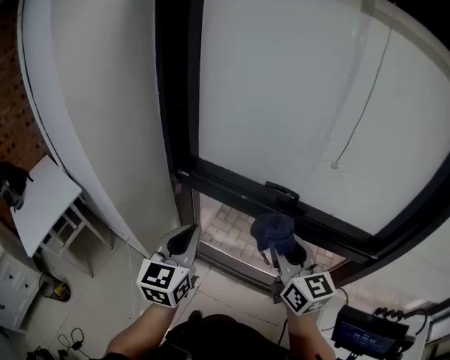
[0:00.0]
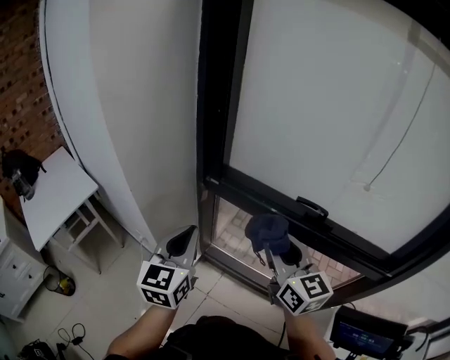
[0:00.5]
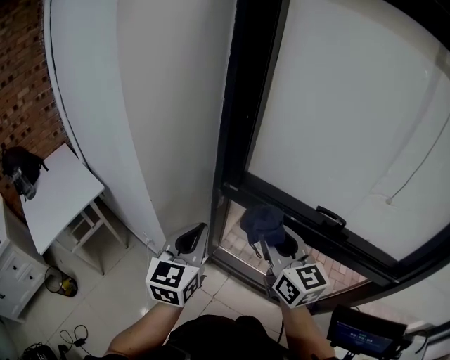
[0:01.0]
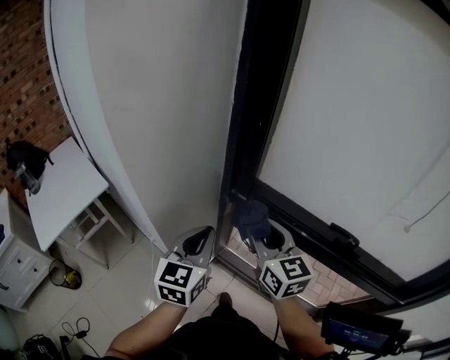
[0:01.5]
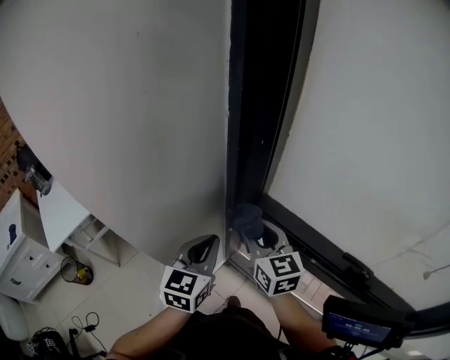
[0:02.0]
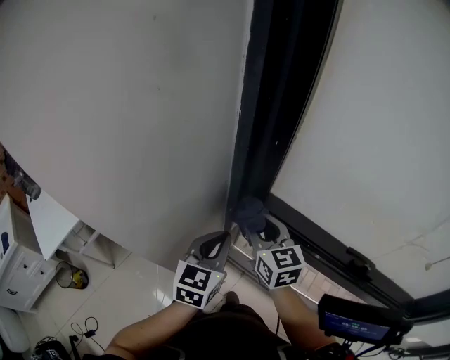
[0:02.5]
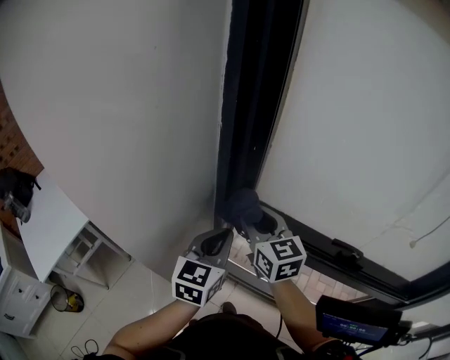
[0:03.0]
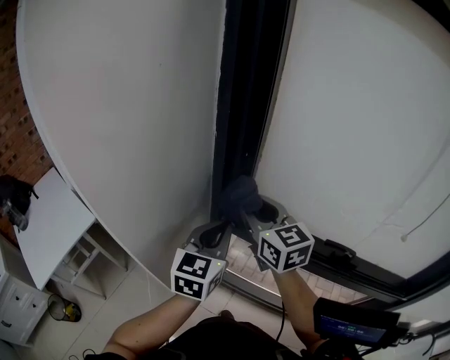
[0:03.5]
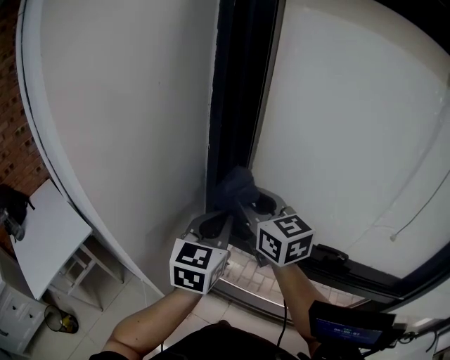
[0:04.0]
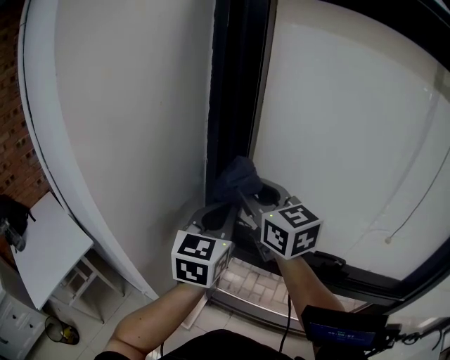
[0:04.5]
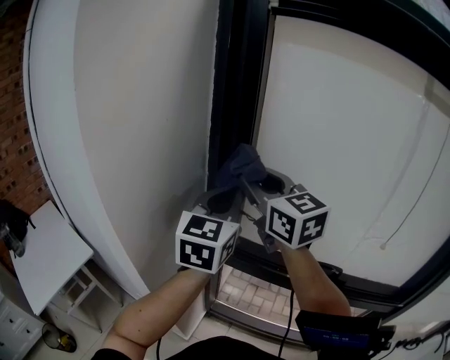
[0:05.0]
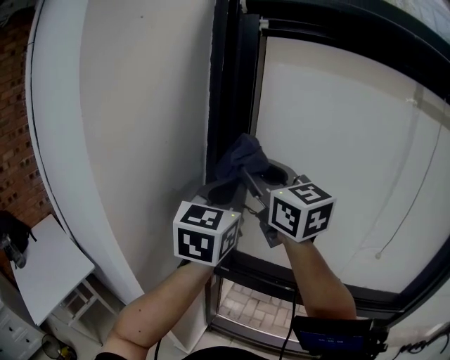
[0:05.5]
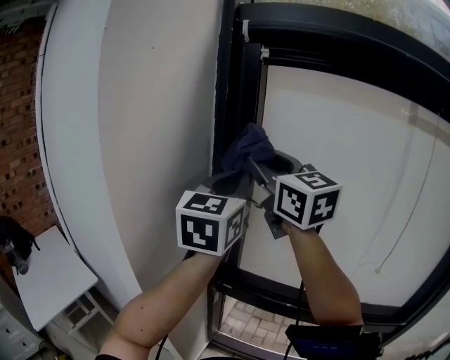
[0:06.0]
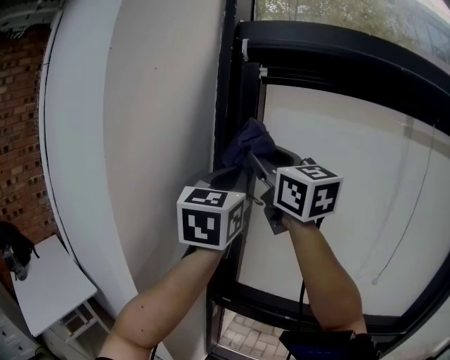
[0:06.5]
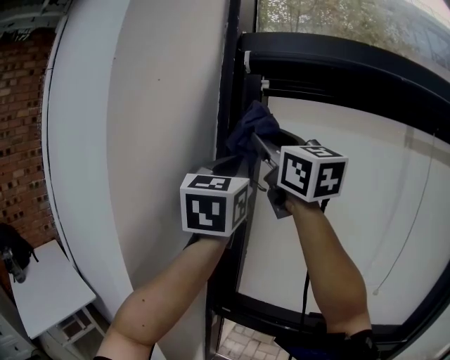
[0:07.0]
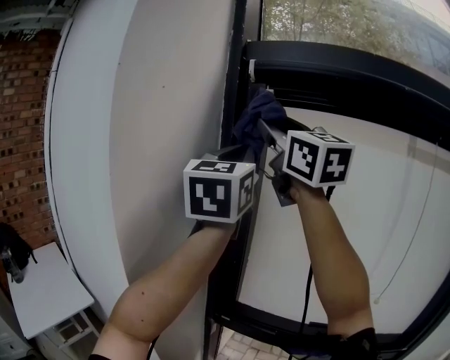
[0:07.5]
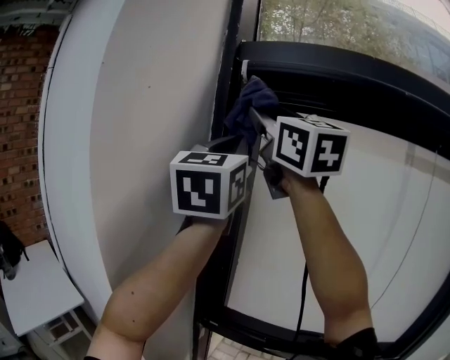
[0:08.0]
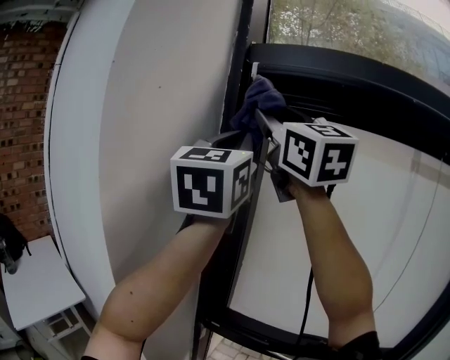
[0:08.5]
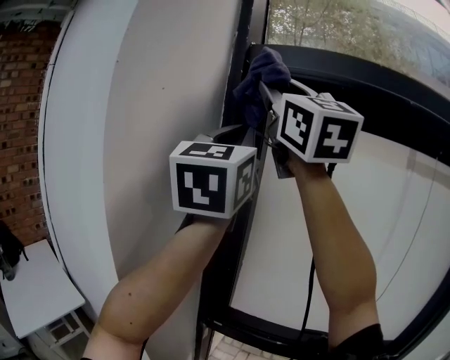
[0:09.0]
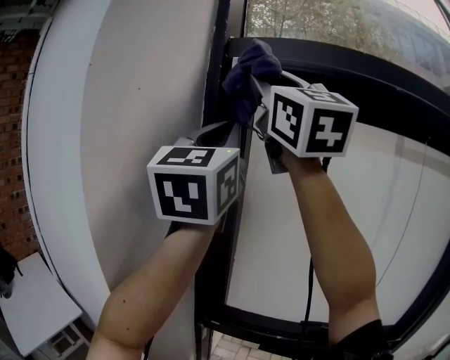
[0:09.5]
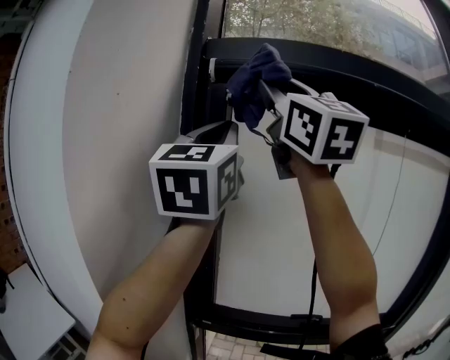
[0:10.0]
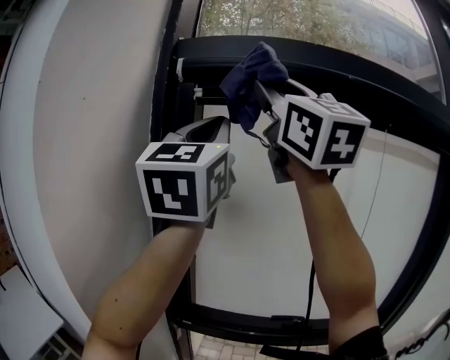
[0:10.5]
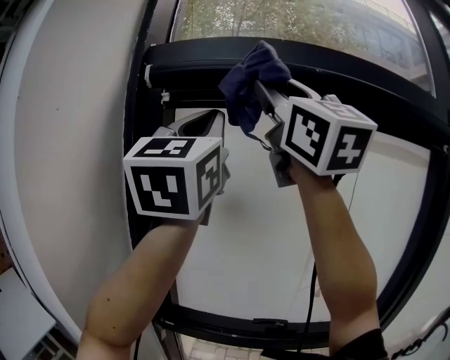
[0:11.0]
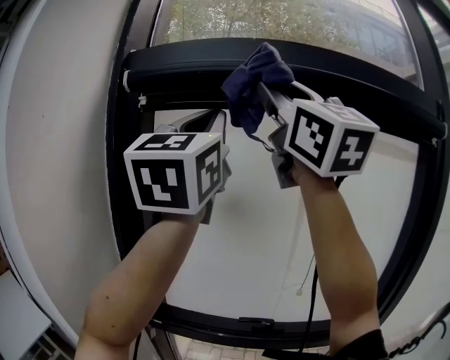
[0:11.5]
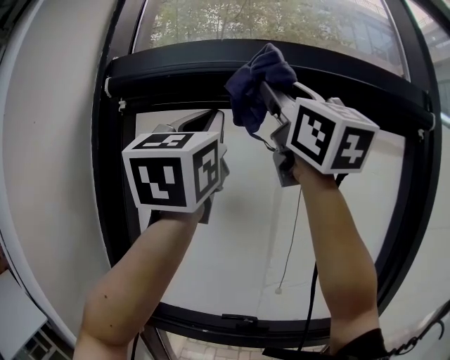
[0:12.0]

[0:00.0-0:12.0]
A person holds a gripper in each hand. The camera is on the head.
0:00.0 to 0:02.0: The right gripper is displaced forward and to the left by roughly 35 cm, and turns by about 20 degrees; the left gripper goes approximately 25 cm forward, to the left and downward.
0:02.0 to 0:04.0: The grippers both shift upward by approximately 15 cm.
0:04.0 to 0:06.0: Both grippers move upward, about 25 cm. The right gripper turns by roughly 20 degrees.
0:06.0 to 0:08.0: Both grippers travel together upward, about 20 cm.
0:08.0 to 0:10.0: The left gripper ends up about 5 cm from where it was; the right gripper shifts roughly 10 cm backward, to the right and upward.
0:10.0 to 0:12.0: Both grippers travel together to the right, some 25 cm.

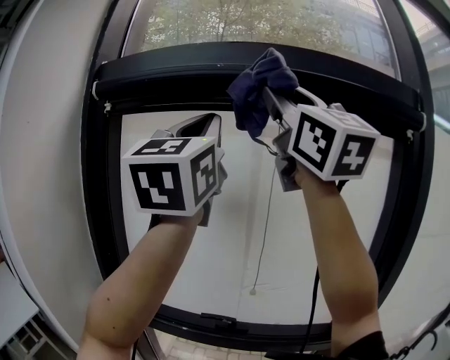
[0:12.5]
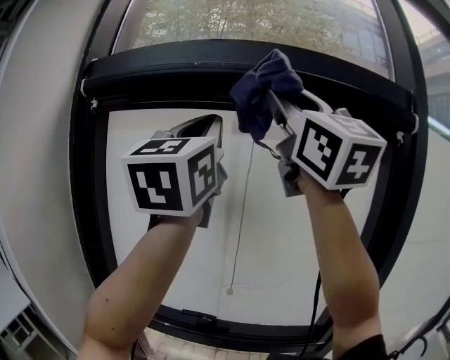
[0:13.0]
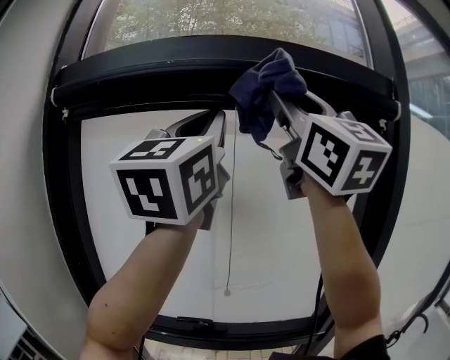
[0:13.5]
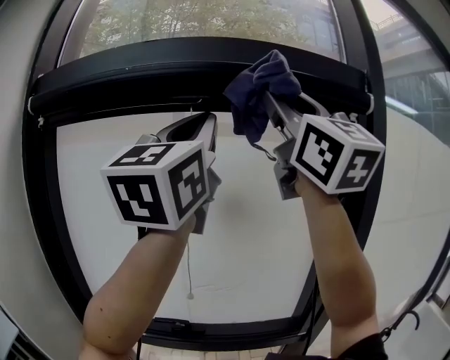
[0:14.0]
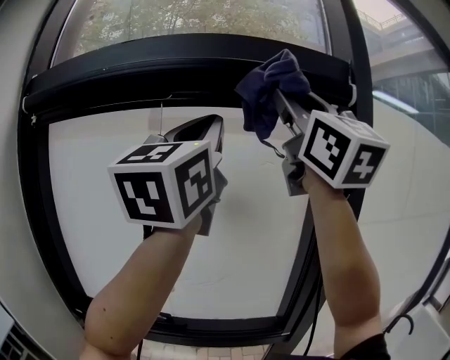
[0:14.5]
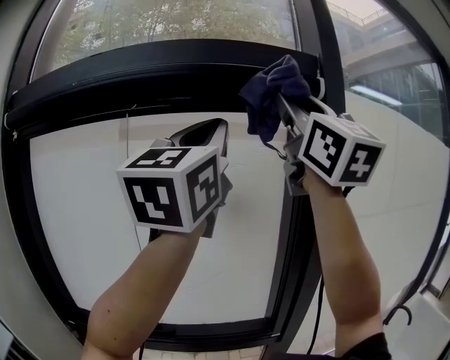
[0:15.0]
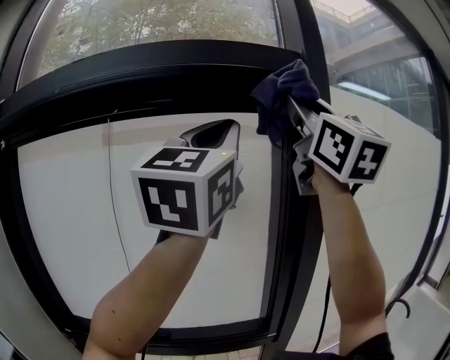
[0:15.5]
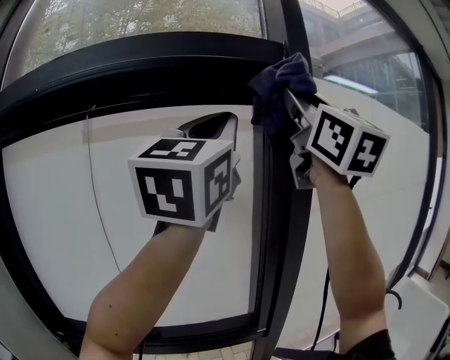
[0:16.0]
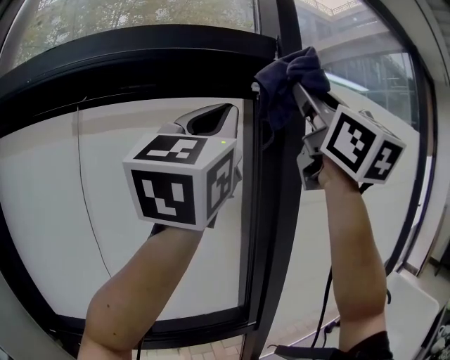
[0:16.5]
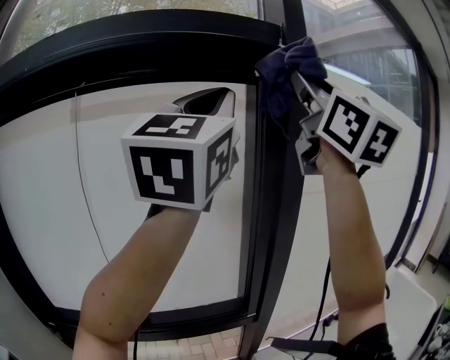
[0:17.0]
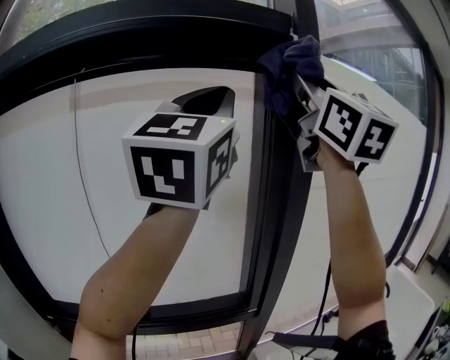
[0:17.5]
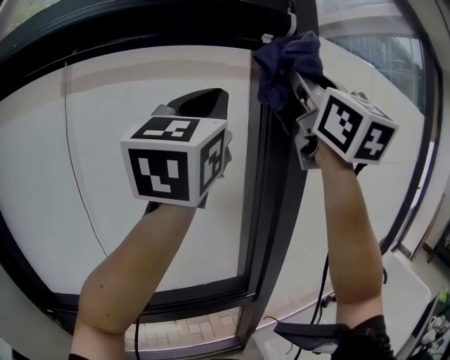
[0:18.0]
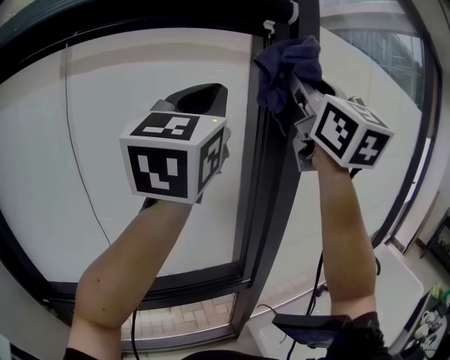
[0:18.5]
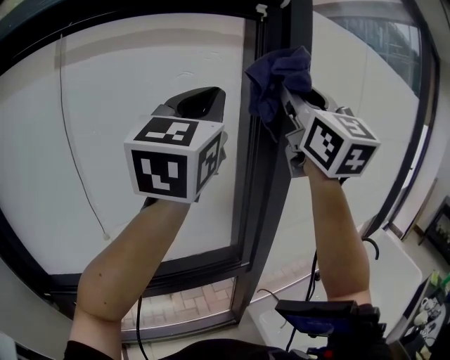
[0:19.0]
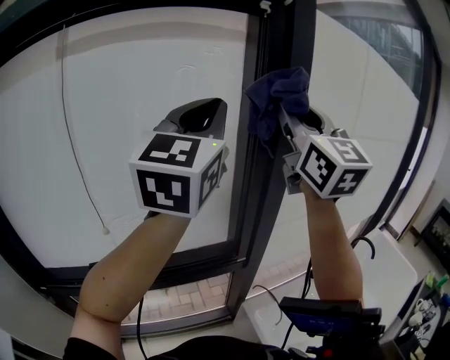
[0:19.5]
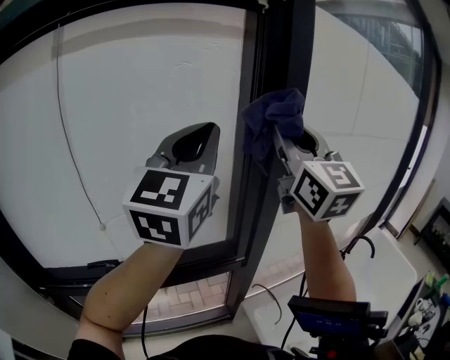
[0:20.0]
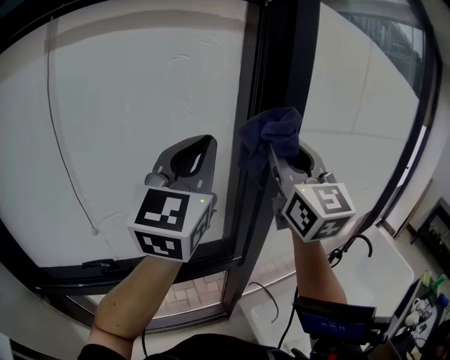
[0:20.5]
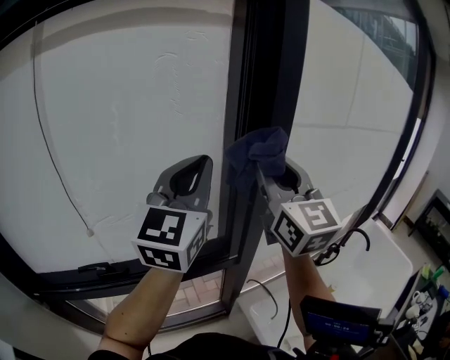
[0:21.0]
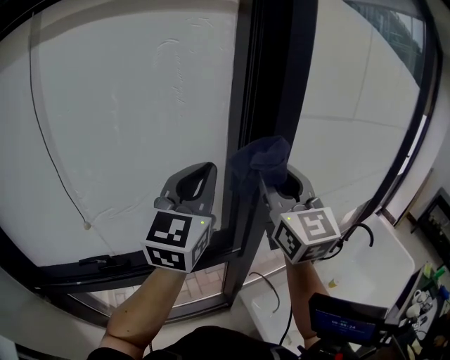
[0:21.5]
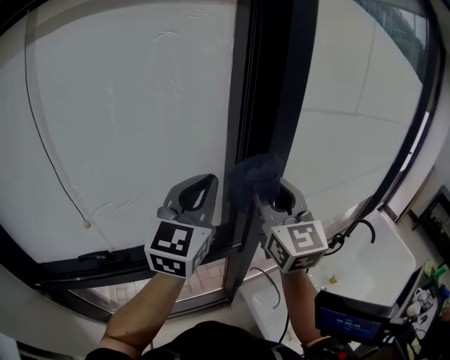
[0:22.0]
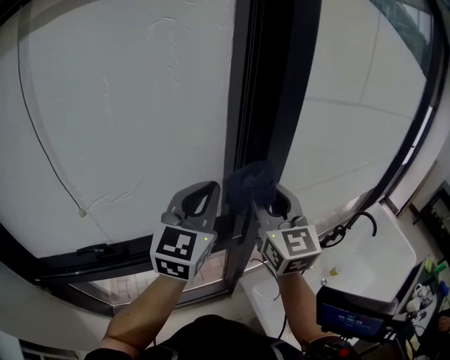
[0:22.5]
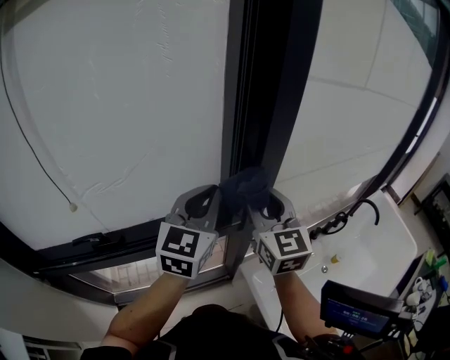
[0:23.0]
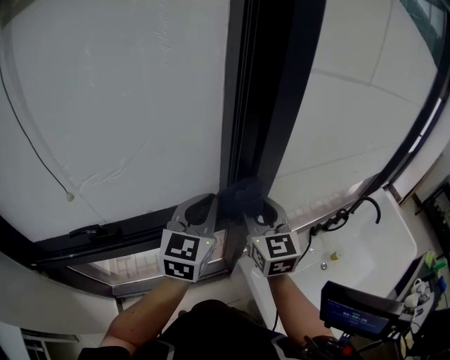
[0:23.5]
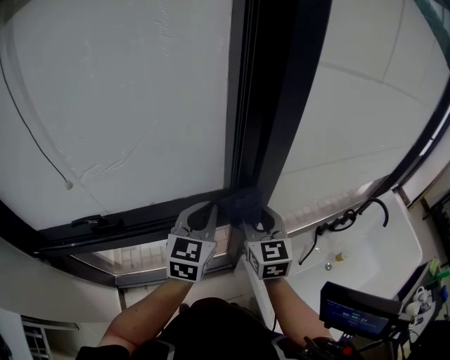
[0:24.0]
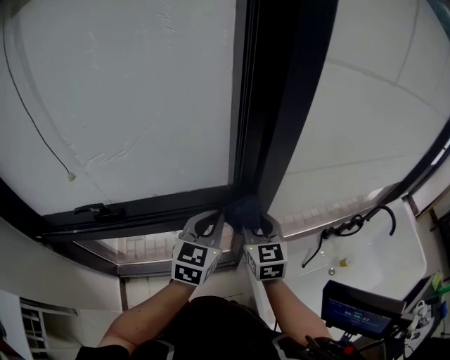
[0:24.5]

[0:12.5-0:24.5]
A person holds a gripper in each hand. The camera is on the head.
0:12.5 to 0:14.5: Both grippers travel together to the right, about 15 cm.
0:14.5 to 0:16.5: Both grippers move to the right, some 25 cm.
0:16.5 to 0:18.5: The right gripper travels downward and forward by some 10 cm, while the left gripper shifts roughly 10 cm downward.
0:18.5 to 0:20.5: The grippers both shift downward by about 15 cm.
0:20.5 to 0:22.5: Both grippers travel together downward, roughly 20 cm.
0:22.5 to 0:24.5: Both grippers move downward, some 25 cm. The right gripper turns by some 20 degrees. Meanwhile the left gripper turns by some 20 degrees.

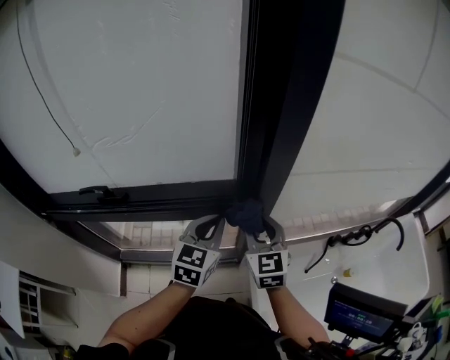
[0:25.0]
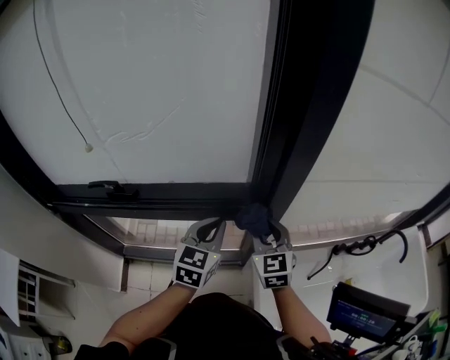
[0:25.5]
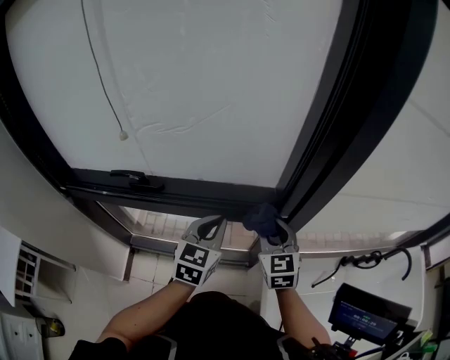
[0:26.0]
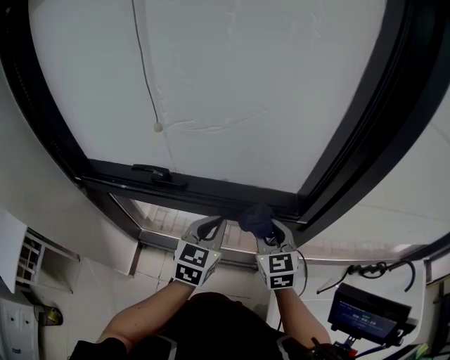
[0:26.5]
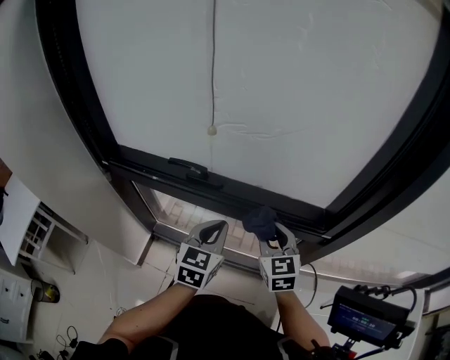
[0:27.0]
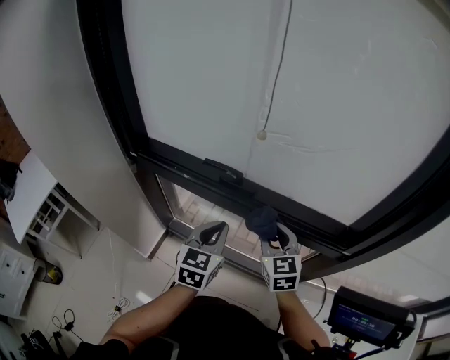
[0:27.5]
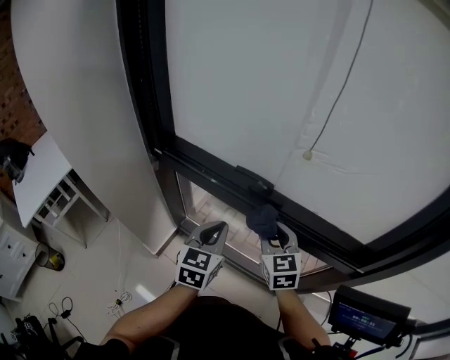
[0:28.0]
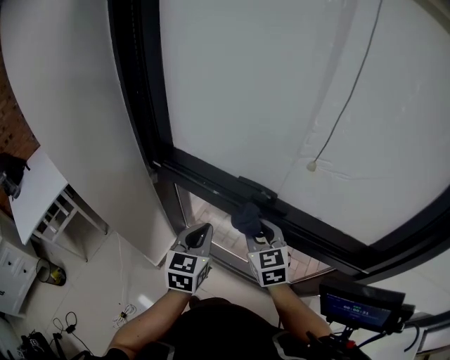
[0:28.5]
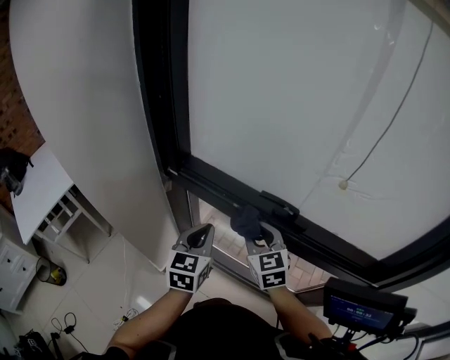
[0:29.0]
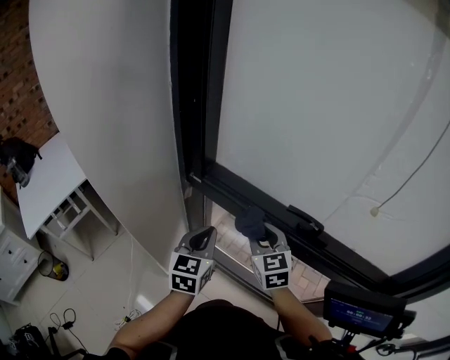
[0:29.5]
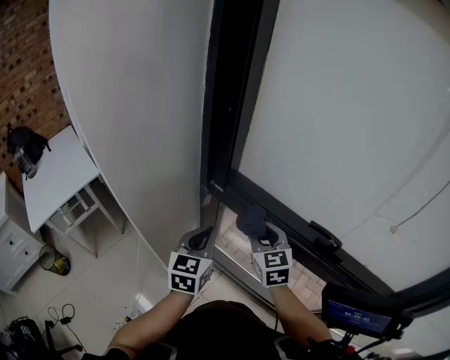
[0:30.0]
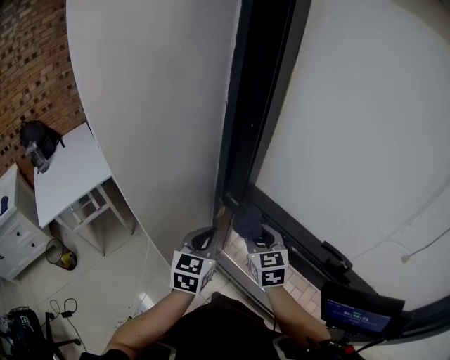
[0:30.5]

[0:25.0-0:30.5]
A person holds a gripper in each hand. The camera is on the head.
0:25.0 to 0:27.0: Both grippers move to the left, some 25 cm. The left gripper turns by approximately 20 degrees. The right gripper changes its angle by approximately 20 degrees.
0:27.0 to 0:28.5: Both grippers move to the left, approximately 25 cm. The left gripper rotates about 20 degrees.
0:28.5 to 0:30.5: The two grippers go about 25 cm to the left and forward.
